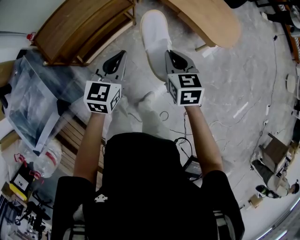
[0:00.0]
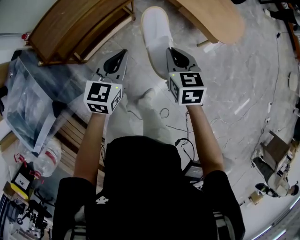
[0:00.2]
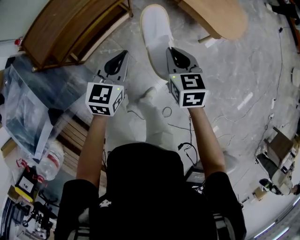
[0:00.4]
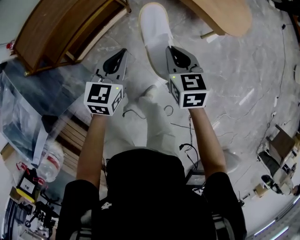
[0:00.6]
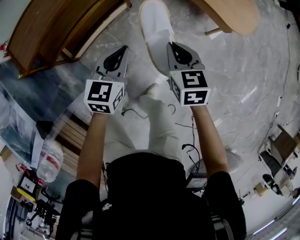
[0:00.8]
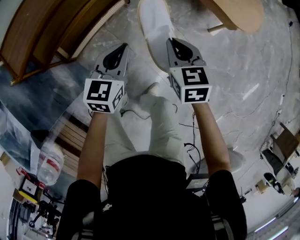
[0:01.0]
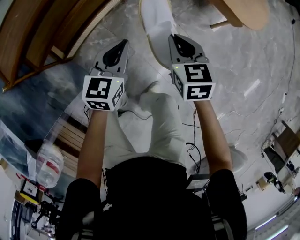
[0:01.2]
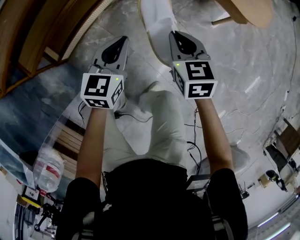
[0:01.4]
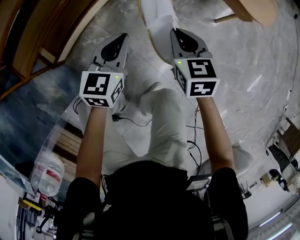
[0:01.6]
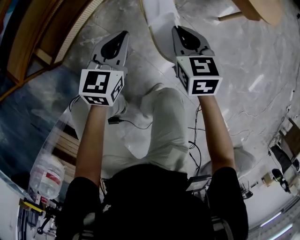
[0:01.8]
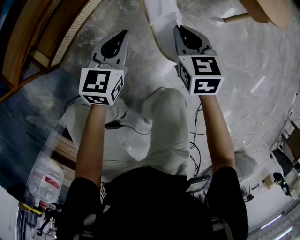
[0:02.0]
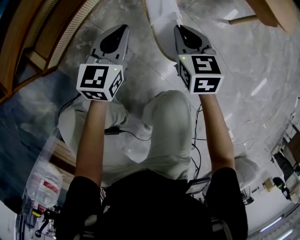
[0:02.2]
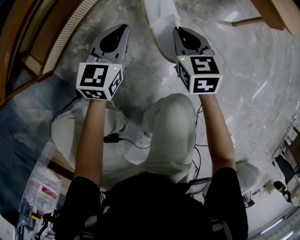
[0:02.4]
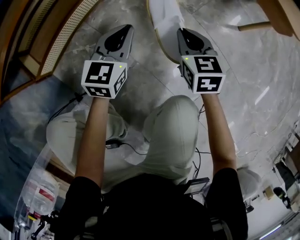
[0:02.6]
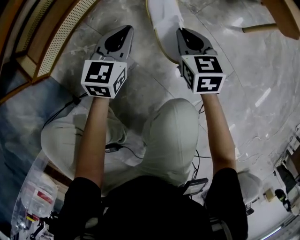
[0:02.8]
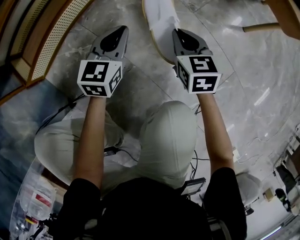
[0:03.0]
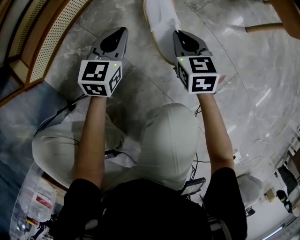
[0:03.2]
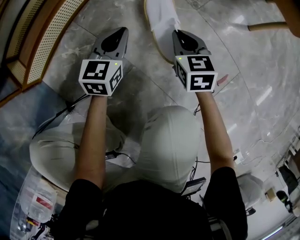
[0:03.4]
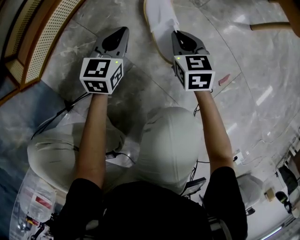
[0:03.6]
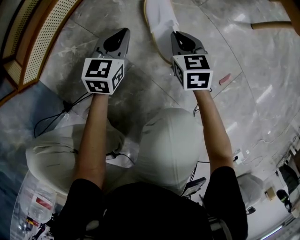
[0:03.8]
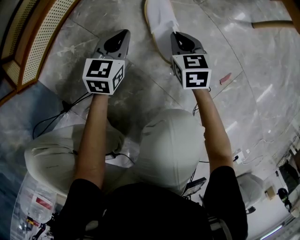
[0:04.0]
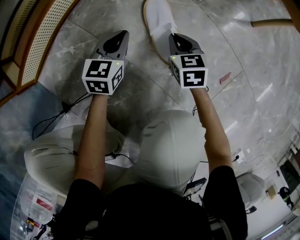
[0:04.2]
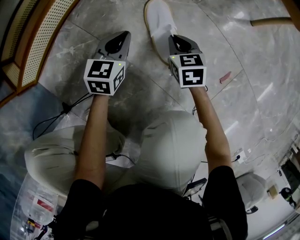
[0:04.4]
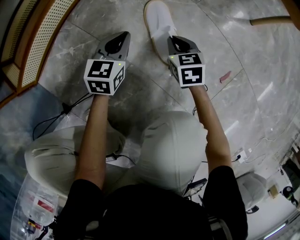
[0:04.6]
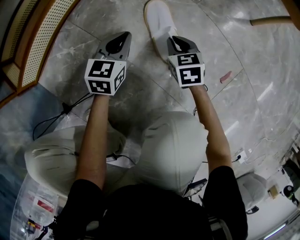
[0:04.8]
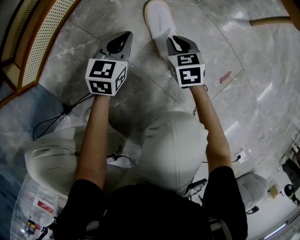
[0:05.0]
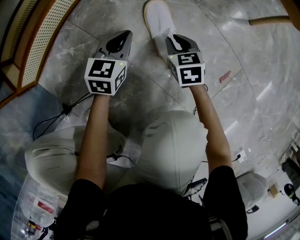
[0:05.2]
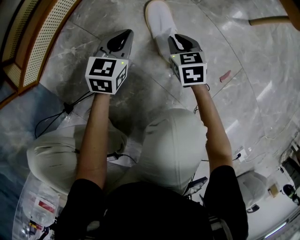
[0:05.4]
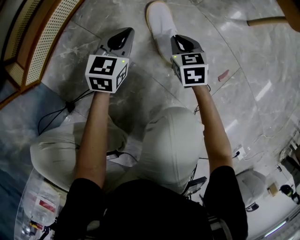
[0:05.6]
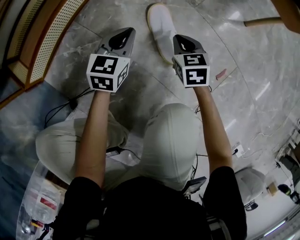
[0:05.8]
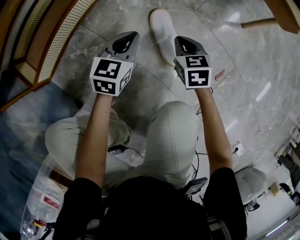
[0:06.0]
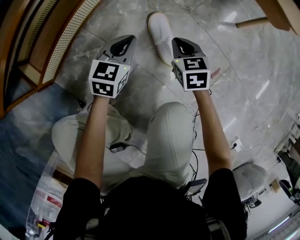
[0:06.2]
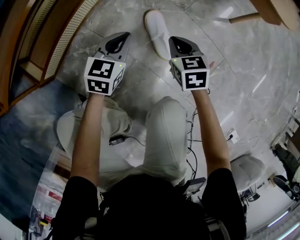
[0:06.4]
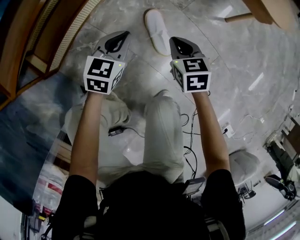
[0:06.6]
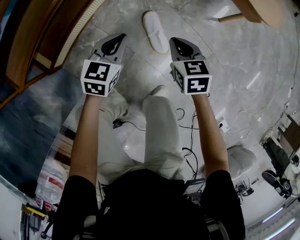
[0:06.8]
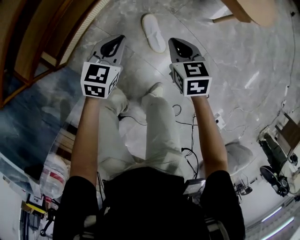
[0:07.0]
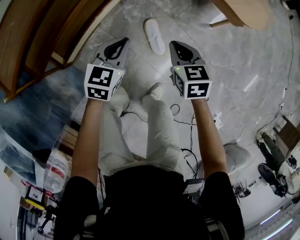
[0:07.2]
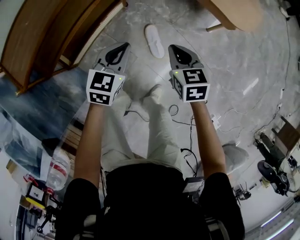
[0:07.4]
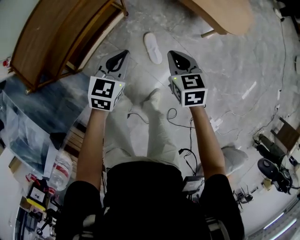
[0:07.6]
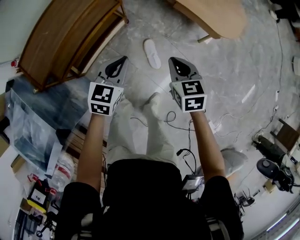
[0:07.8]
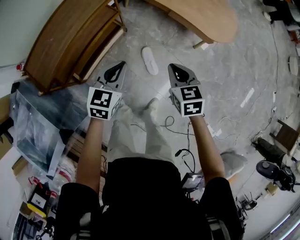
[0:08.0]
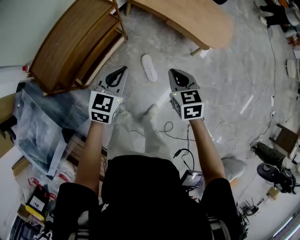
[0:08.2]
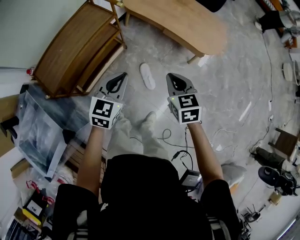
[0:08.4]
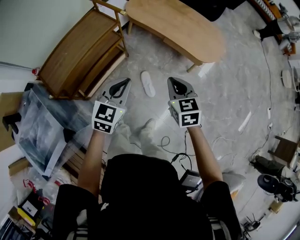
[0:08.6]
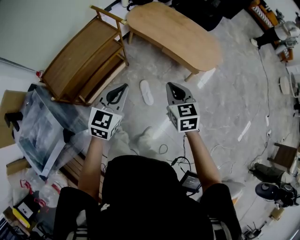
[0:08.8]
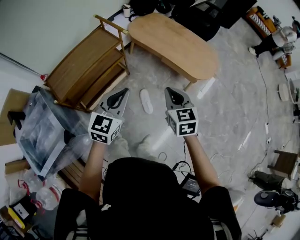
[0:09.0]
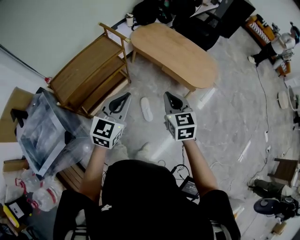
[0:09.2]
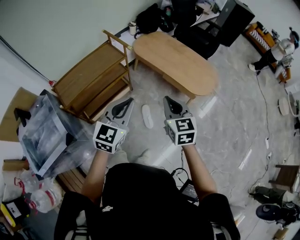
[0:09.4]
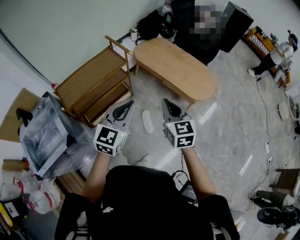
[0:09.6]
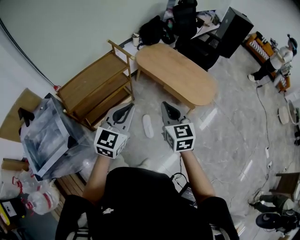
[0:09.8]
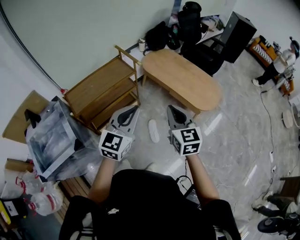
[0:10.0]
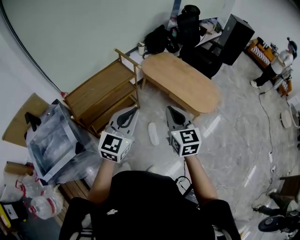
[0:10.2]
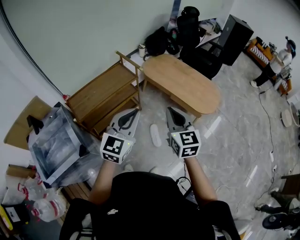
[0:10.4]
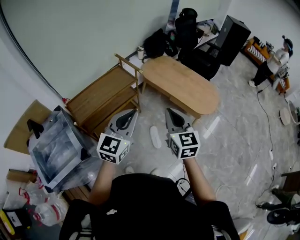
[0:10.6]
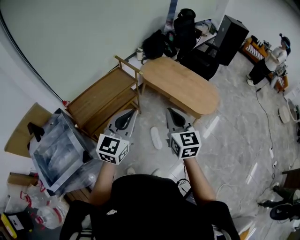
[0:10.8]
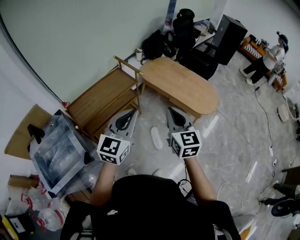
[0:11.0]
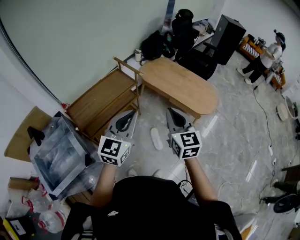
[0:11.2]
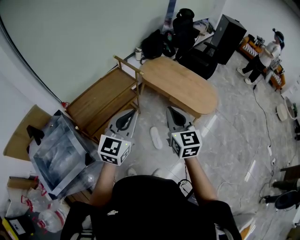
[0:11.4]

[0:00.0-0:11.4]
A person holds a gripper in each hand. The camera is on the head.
0:00.0 to 0:01.4: The grippers both shift downward by roughly 35 cm.
0:01.4 to 0:02.8: Both grippers move downward, roughly 30 cm.
0:02.8 to 0:04.2: The grippers both shift downward by some 15 cm.
0:04.2 to 0:05.6: The grippers move only a little.
0:05.6 to 0:07.2: The grippers both shift upward by about 50 cm.
0:07.2 to 0:08.6: Both grippers move upward, roughly 35 cm.
0:08.6 to 0:10.0: Both grippers travel together upward, roughly 20 cm. The left gripper swivels about 20 degrees. The right gripper swivels about 20 degrees.
0:10.0 to 0:11.4: The two grippers go approximately 10 cm to the left.

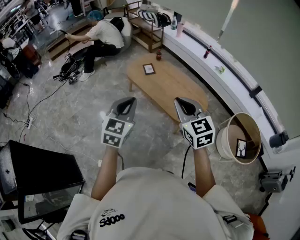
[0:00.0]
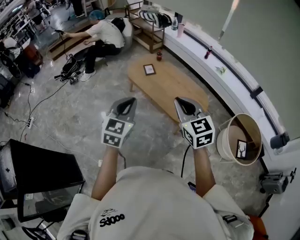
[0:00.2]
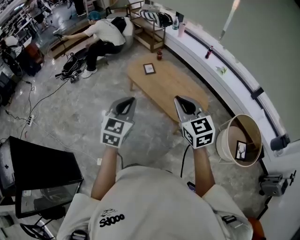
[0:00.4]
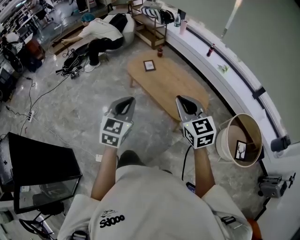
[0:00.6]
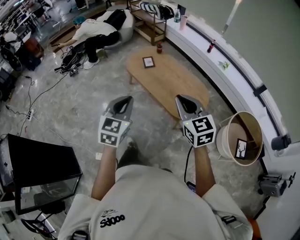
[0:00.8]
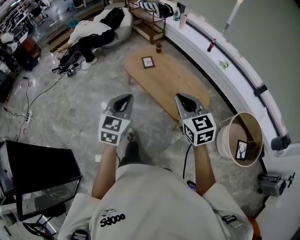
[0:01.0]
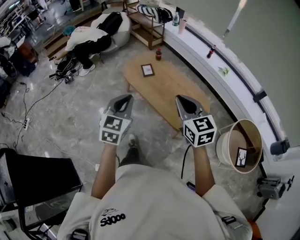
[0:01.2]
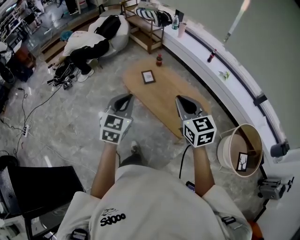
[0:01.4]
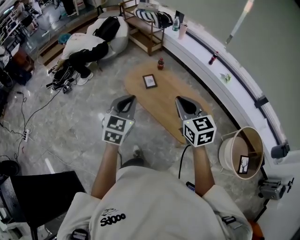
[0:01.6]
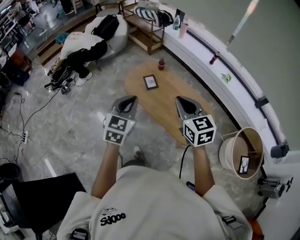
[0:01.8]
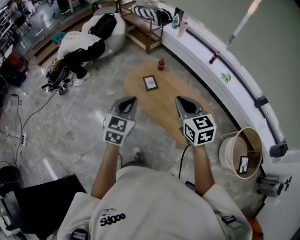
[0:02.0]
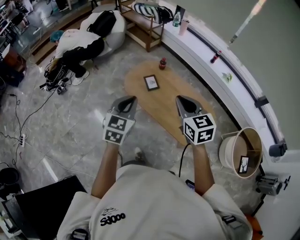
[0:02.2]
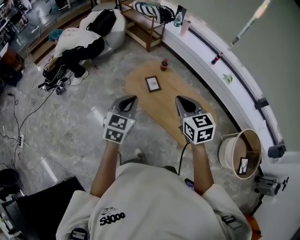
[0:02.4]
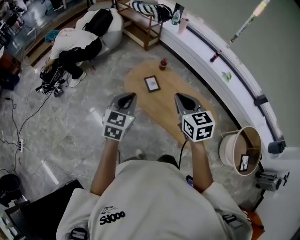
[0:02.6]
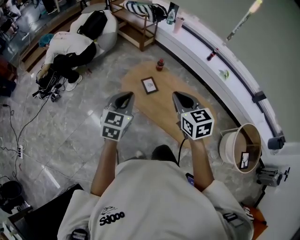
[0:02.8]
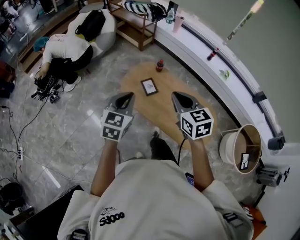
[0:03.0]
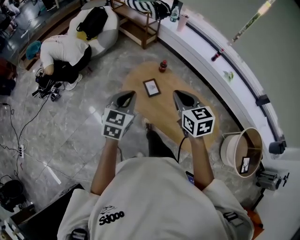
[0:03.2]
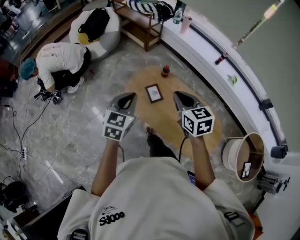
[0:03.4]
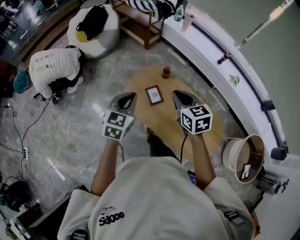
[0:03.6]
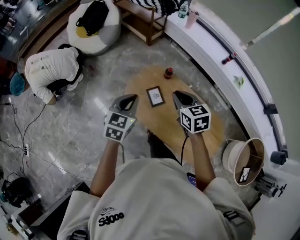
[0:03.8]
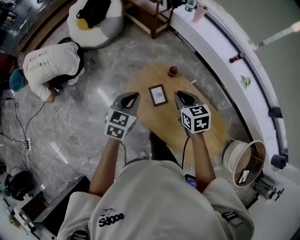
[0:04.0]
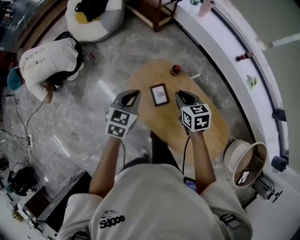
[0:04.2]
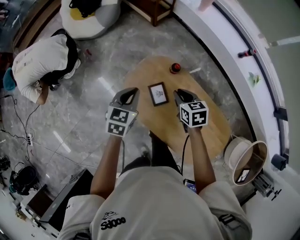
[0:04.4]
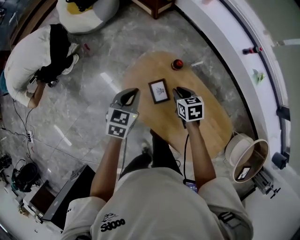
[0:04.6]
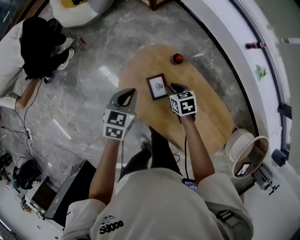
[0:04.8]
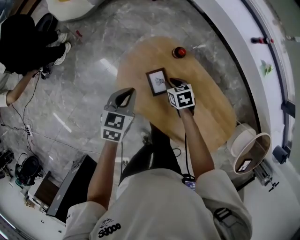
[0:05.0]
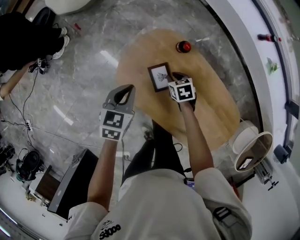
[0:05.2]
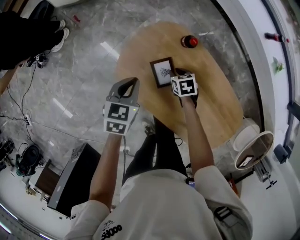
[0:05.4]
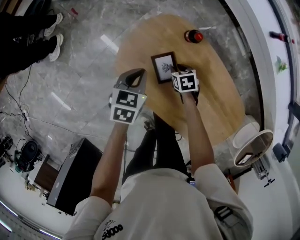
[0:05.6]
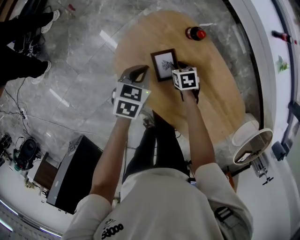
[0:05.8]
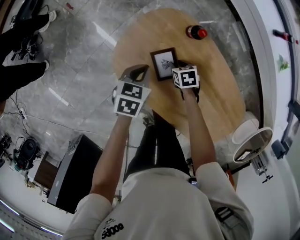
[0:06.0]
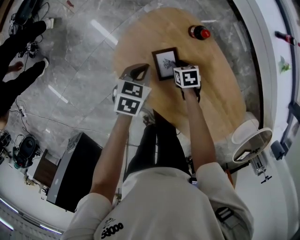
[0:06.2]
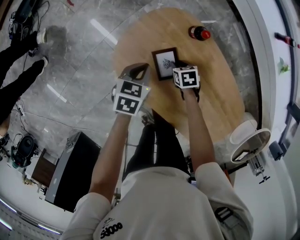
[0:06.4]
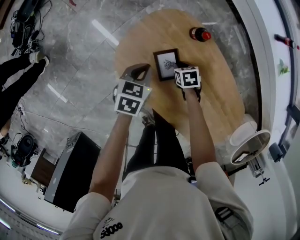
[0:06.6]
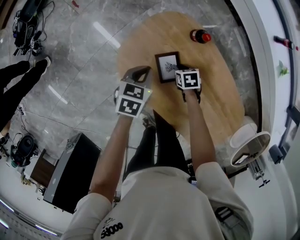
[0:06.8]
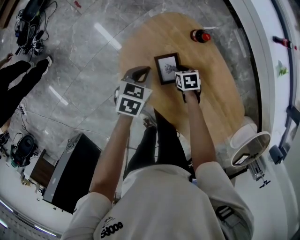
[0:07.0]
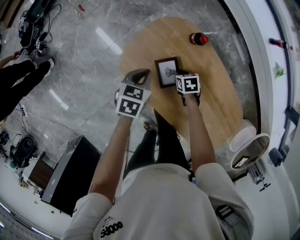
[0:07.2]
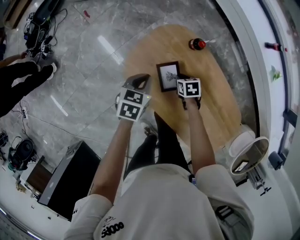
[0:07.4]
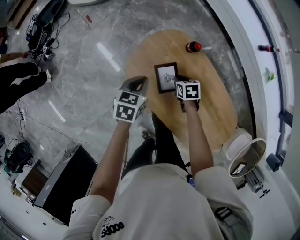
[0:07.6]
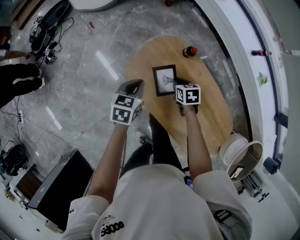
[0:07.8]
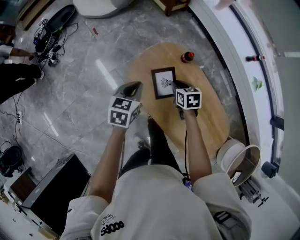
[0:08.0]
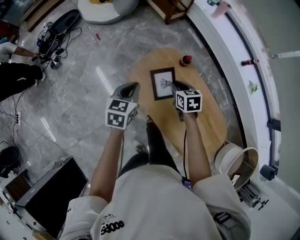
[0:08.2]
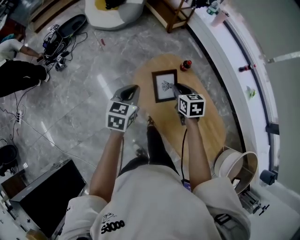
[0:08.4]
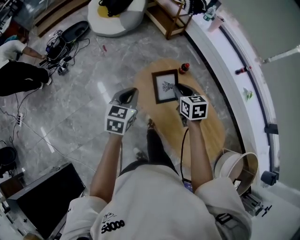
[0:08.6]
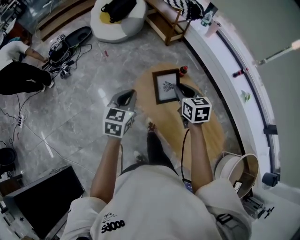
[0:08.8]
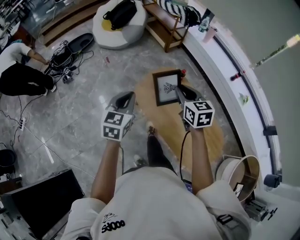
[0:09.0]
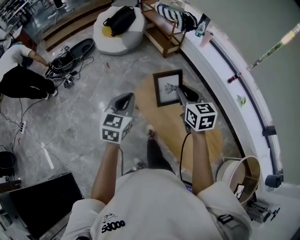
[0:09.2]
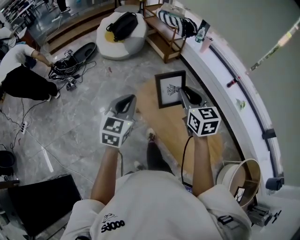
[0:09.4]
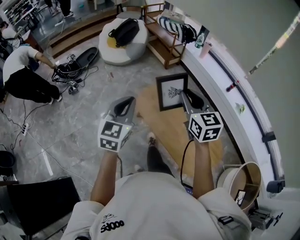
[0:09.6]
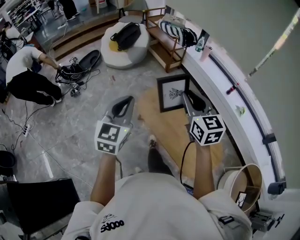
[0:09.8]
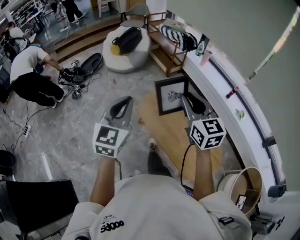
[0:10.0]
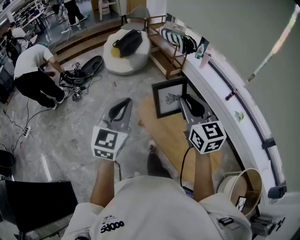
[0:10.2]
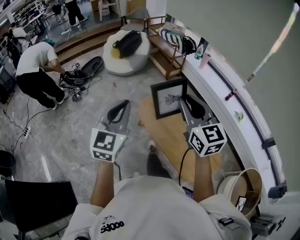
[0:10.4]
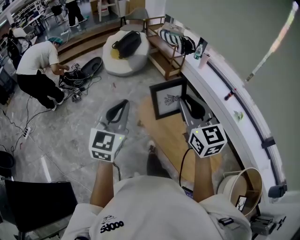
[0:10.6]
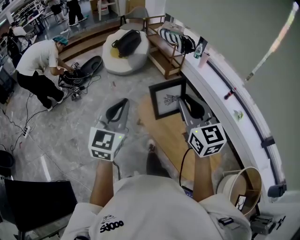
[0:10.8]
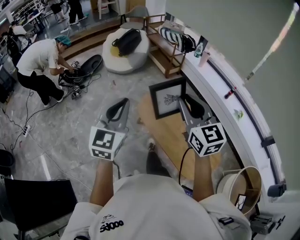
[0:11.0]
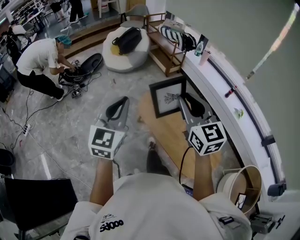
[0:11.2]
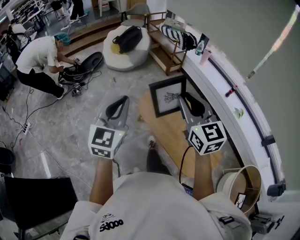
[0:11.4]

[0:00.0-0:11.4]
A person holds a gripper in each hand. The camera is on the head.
0:00.0 to 0:01.4: The grippers both shift forward by approximately 20 cm.
0:01.4 to 0:02.8: Both grippers move forward and to the left, some 25 cm.
0:02.8 to 0:04.2: Both grippers move forward and downward, about 35 cm. The right gripper rotates roughly 20 degrees.
0:04.2 to 0:05.6: The left gripper travels downward by approximately 25 cm, and turns by roughly 20 degrees. Meanwhile the right gripper travels downward by some 40 cm, and swivels about 30 degrees.
0:05.6 to 0:07.2: There are only small adjustments of the grippers.
0:07.2 to 0:08.6: The right gripper shifts approximately 40 cm upward, and points its fingers approximately 30 degrees further upward. The left gripper goes roughly 35 cm upward, backward and to the left, and turns by some 30 degrees.
0:08.6 to 0:10.0: Both grippers travel together upward and backward, some 35 cm. The right gripper angles its fingers upward, by approximately 30 degrees. Meanwhile the left gripper rotates approximately 30 degrees.
0:10.0 to 0:11.4: The right gripper ends up some 5 cm from where it was.

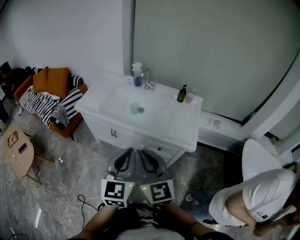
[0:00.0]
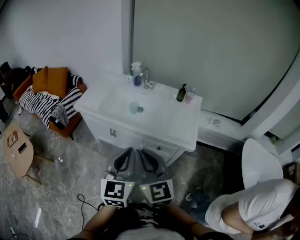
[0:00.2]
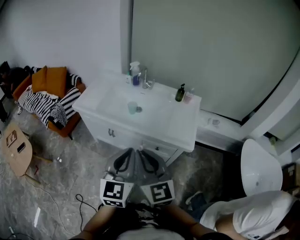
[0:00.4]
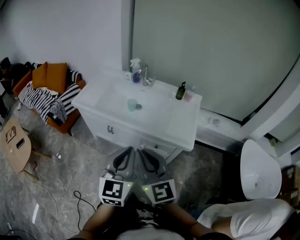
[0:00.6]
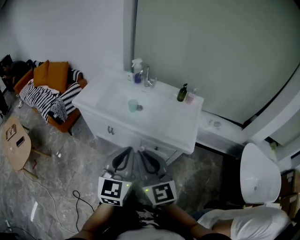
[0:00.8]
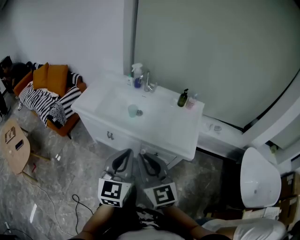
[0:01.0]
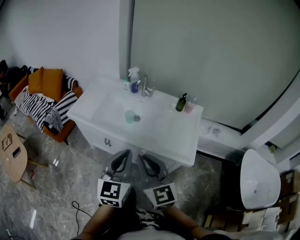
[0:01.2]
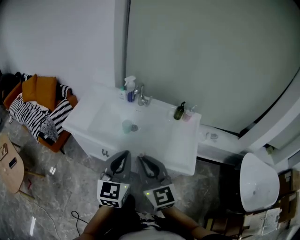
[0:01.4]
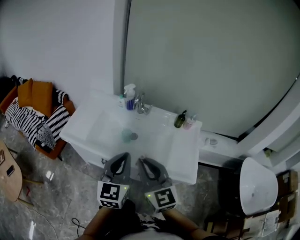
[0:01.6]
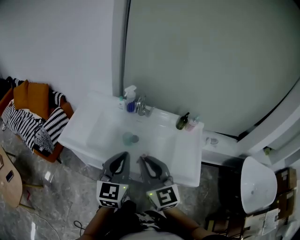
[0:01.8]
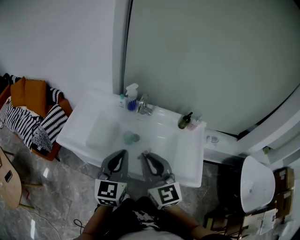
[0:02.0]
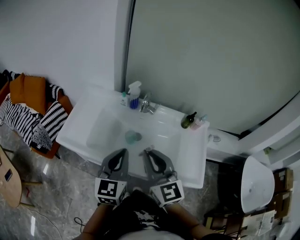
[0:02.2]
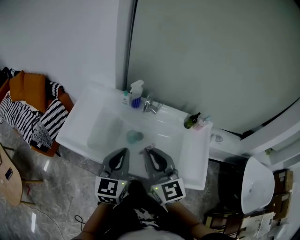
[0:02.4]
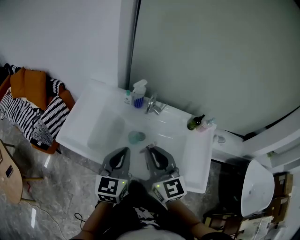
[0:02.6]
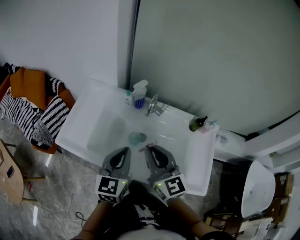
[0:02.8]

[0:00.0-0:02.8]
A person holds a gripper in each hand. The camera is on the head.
0:00.0 to 0:01.4: The grippers both shift forward by approximately 15 cm.
0:01.4 to 0:02.8: Both grippers travel together forward, roughly 25 cm.
